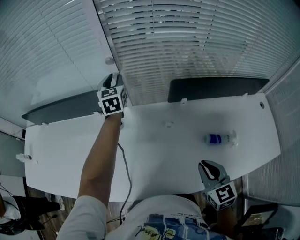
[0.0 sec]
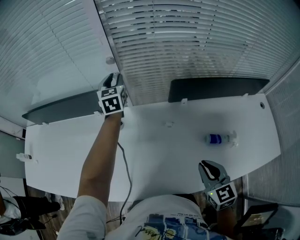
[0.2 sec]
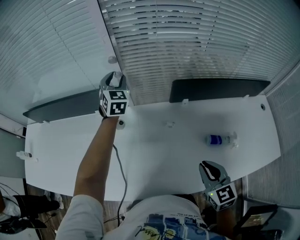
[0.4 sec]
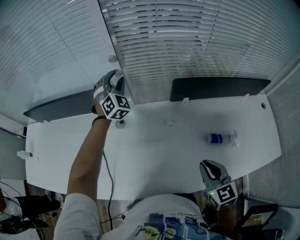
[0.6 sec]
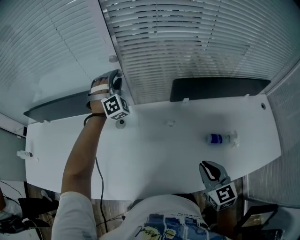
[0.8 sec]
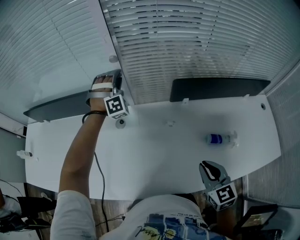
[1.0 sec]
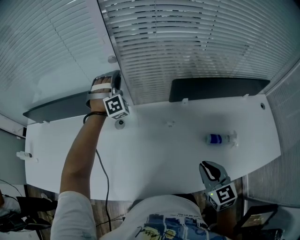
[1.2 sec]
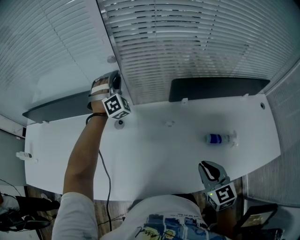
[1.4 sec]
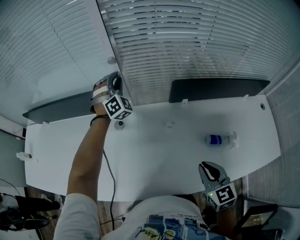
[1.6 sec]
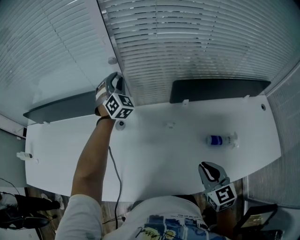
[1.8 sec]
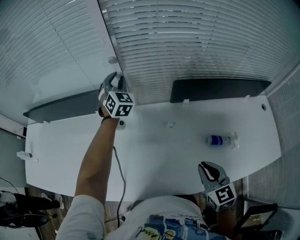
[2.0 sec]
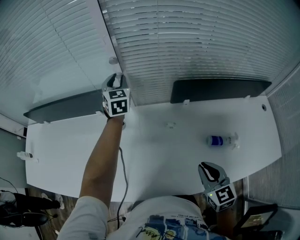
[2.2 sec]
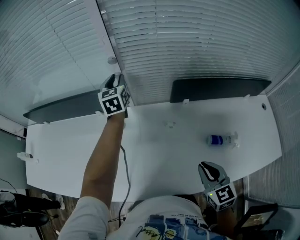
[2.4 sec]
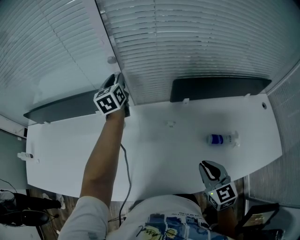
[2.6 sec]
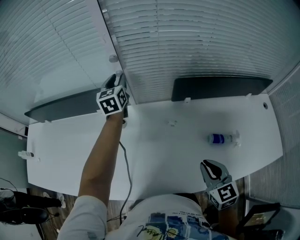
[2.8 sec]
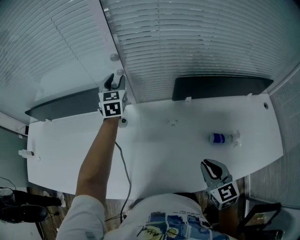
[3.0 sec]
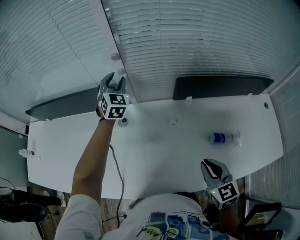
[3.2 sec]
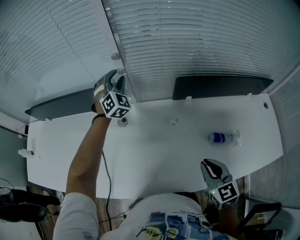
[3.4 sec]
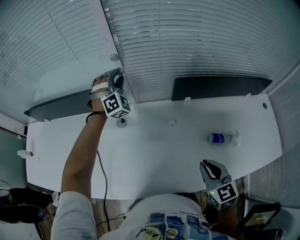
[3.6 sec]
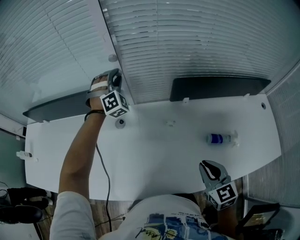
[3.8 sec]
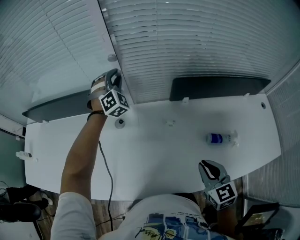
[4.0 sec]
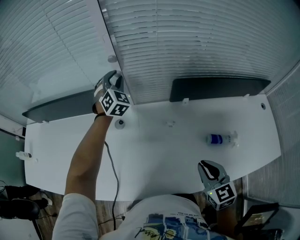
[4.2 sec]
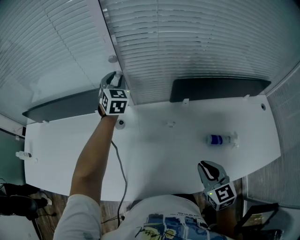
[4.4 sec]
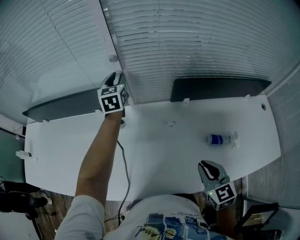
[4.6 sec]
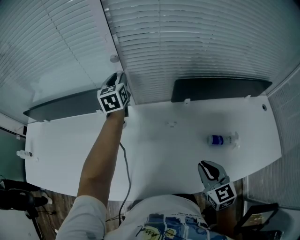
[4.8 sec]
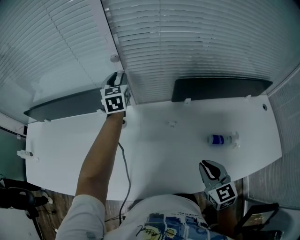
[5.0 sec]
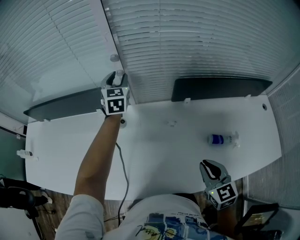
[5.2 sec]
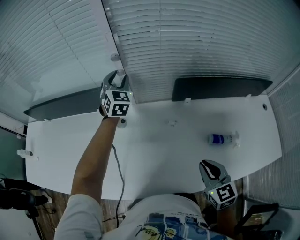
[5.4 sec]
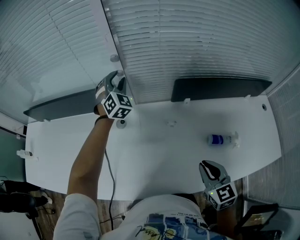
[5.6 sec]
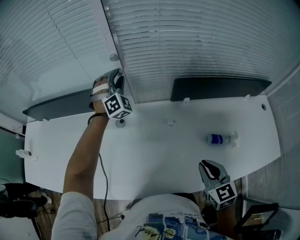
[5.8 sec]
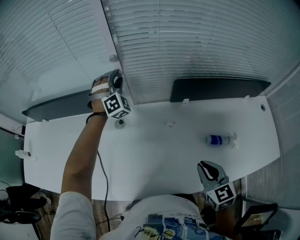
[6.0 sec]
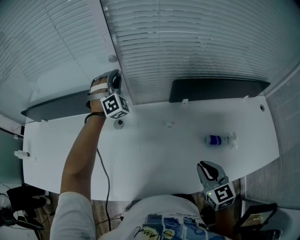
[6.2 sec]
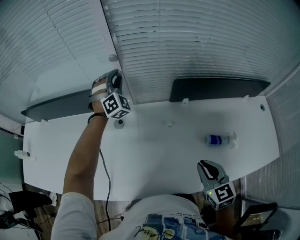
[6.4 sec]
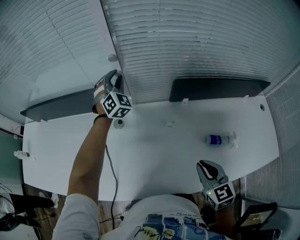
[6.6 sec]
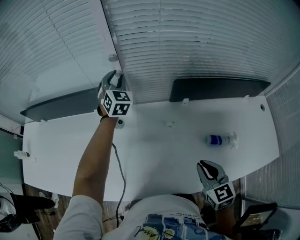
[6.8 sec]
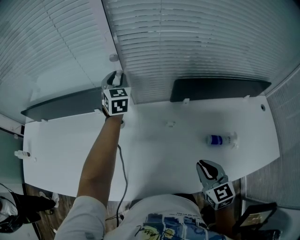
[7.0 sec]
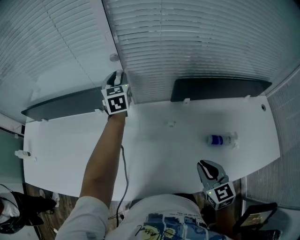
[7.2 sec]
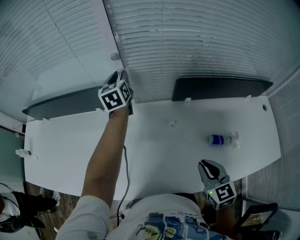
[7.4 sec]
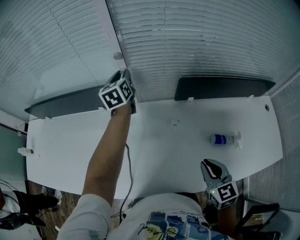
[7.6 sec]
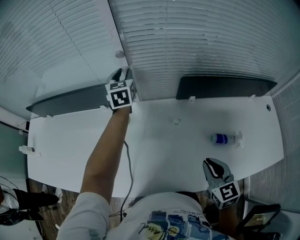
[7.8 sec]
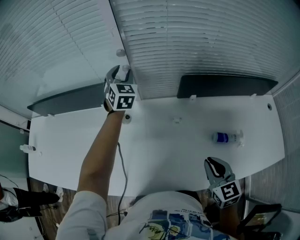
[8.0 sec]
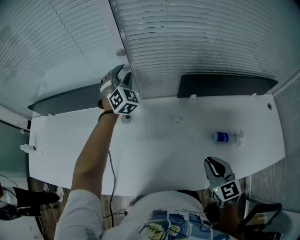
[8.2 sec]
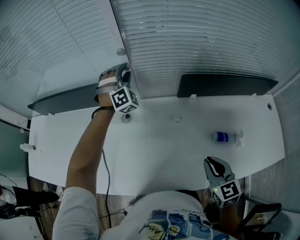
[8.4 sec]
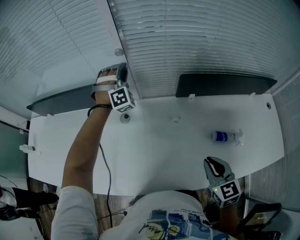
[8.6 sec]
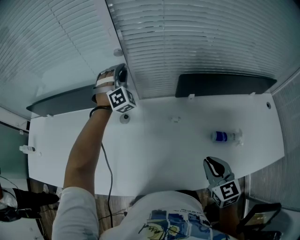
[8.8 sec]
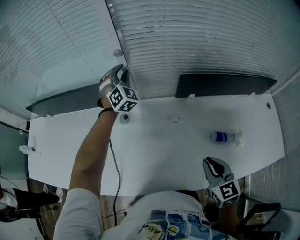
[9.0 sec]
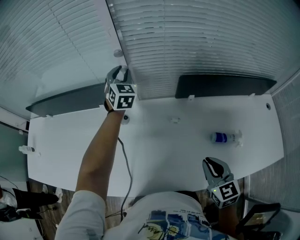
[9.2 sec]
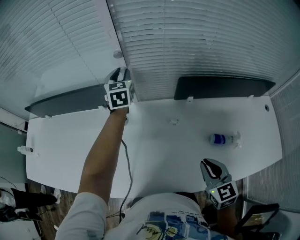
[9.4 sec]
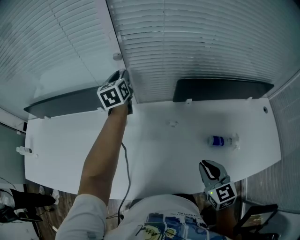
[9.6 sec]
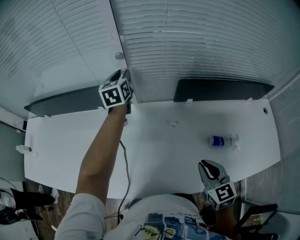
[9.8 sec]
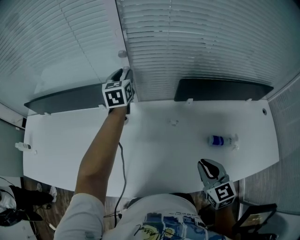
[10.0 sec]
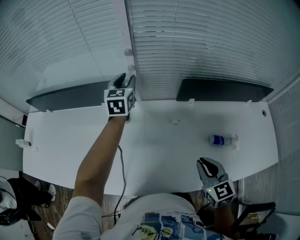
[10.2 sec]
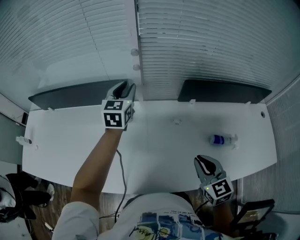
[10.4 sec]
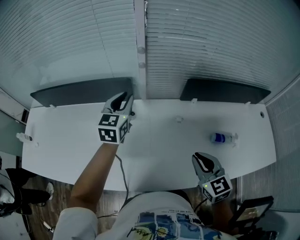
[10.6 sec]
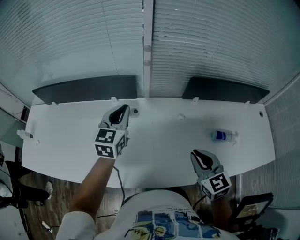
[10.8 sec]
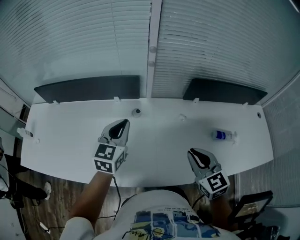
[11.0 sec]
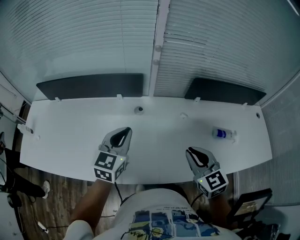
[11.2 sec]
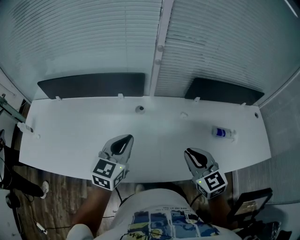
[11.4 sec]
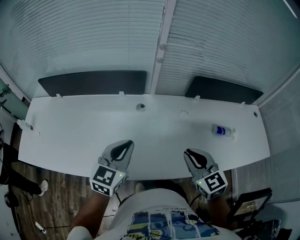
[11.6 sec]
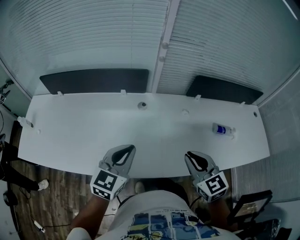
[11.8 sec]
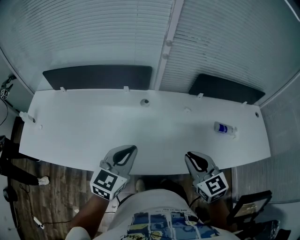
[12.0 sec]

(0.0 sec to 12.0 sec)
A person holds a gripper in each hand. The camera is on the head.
0.0 sec - 1.6 sec: The left gripper rotates around the line of its fingers by approximately 60 degrees, clockwise from behind.
1.6 sec - 3.0 sec: The left gripper rotates around the line of its fingers by roughly 60 degrees, counterclockwise from behind.
4.4 sec - 6.0 sec: The left gripper twists about 50 degrees clockwise, seen from behind.
6.0 sec - 7.6 sec: The left gripper twists approximately 90 degrees counterclockwise, seen from behind.
7.6 sec - 9.0 sec: The left gripper twists approximately 70 degrees clockwise, seen from behind.
9.0 sec - 10.4 sec: The left gripper is displaced backward by approximately 10 cm, and twists roughly 50 degrees counterclockwise, seen from behind. Meanwhile the right gripper moves to the left, approximately 5 cm.
10.4 sec - 12.0 sec: The left gripper goes roughly 35 cm backward, and closes. Meanwhile the right gripper shifts about 20 cm to the left and backward.

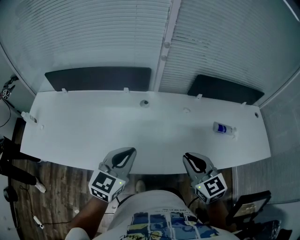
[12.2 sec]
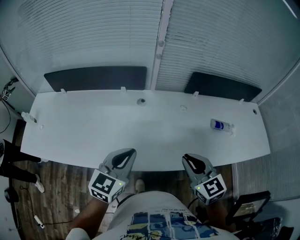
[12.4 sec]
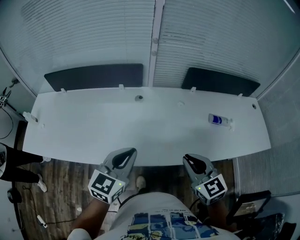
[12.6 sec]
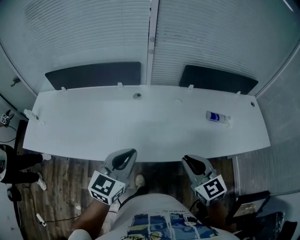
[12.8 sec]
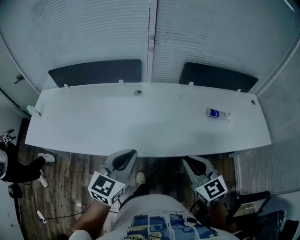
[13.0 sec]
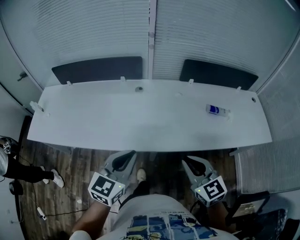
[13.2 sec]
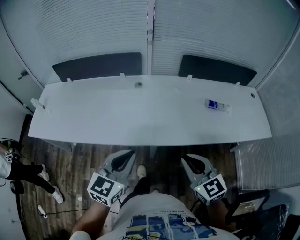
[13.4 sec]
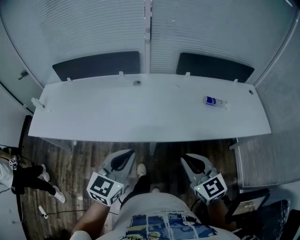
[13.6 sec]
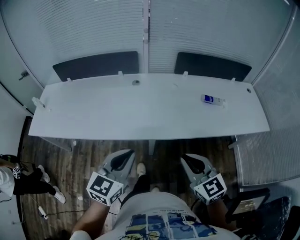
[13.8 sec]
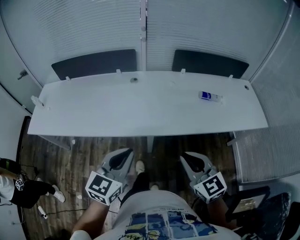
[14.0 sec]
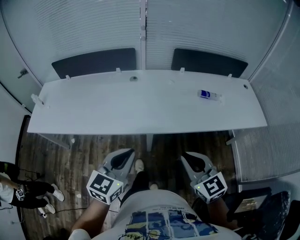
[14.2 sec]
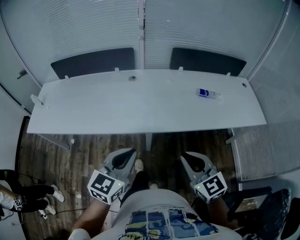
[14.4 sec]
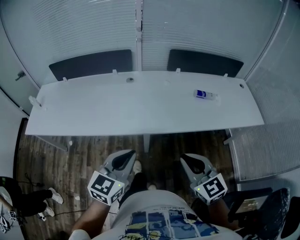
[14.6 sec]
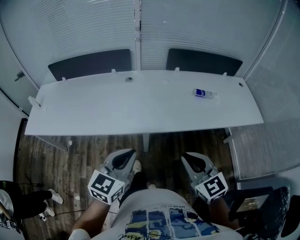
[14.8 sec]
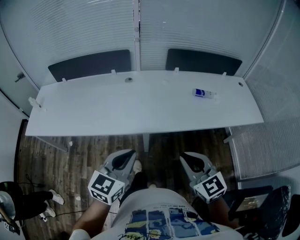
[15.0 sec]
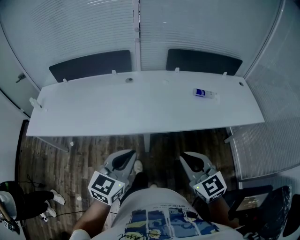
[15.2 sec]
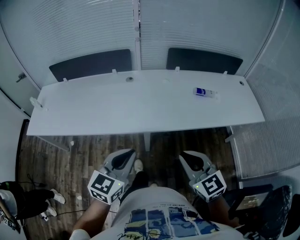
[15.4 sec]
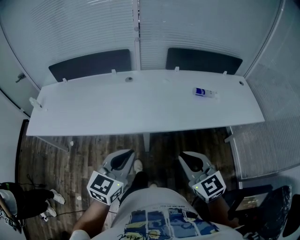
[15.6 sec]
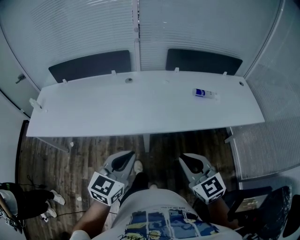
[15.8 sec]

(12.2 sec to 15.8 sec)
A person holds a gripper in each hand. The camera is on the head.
12.2 sec - 14.0 sec: The grippers both shift backward by some 25 cm.
14.0 sec - 15.8 sec: The right gripper ends up approximately 5 cm from where it was, while the left gripper ends up roughly 5 cm from where it was.

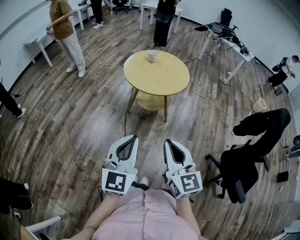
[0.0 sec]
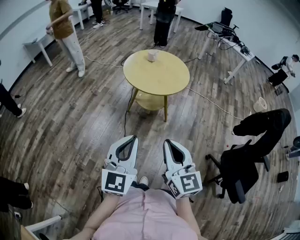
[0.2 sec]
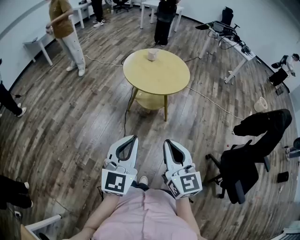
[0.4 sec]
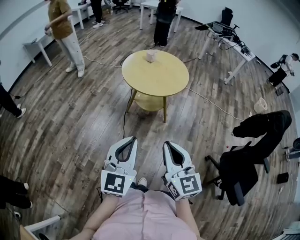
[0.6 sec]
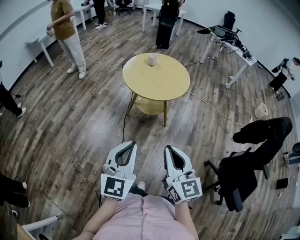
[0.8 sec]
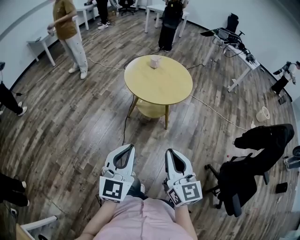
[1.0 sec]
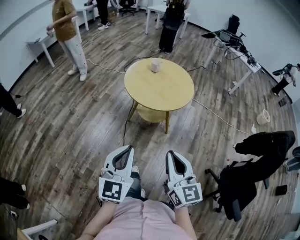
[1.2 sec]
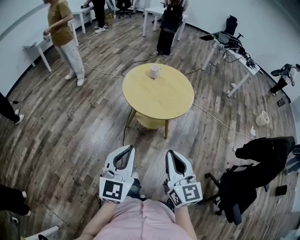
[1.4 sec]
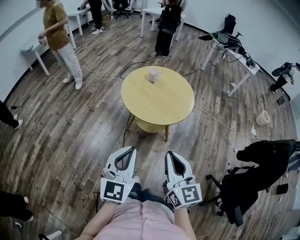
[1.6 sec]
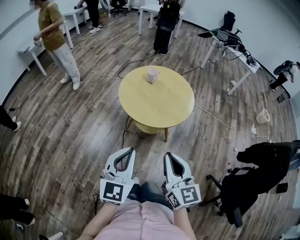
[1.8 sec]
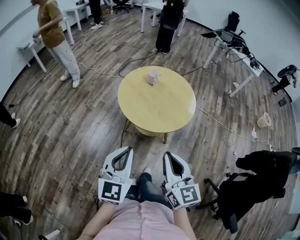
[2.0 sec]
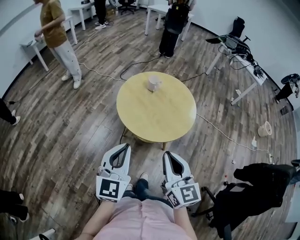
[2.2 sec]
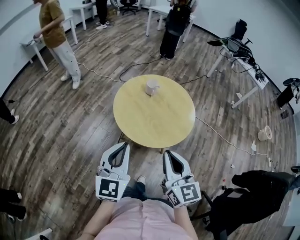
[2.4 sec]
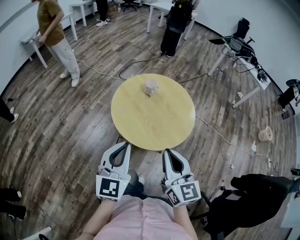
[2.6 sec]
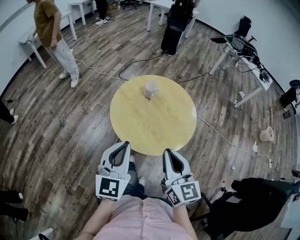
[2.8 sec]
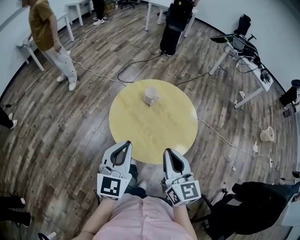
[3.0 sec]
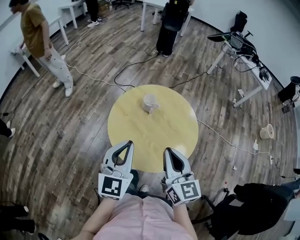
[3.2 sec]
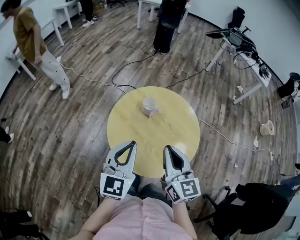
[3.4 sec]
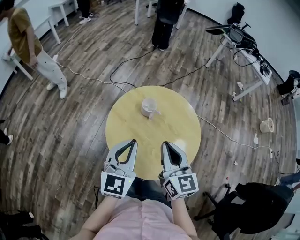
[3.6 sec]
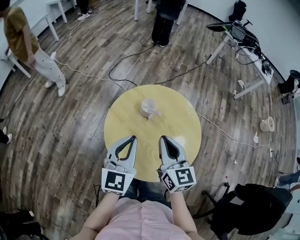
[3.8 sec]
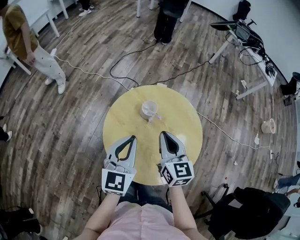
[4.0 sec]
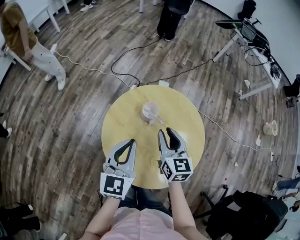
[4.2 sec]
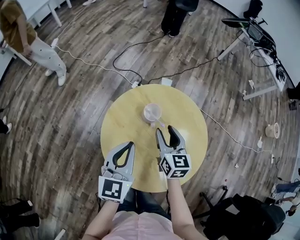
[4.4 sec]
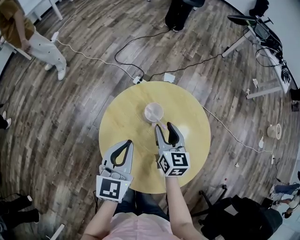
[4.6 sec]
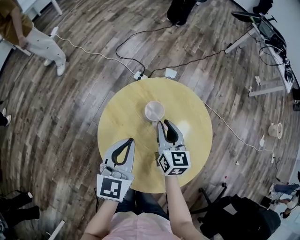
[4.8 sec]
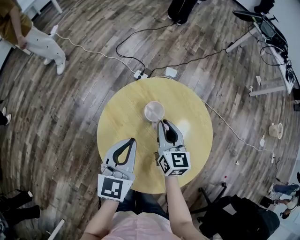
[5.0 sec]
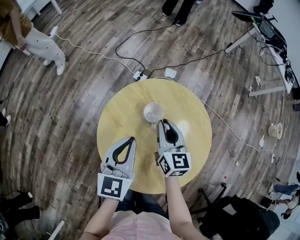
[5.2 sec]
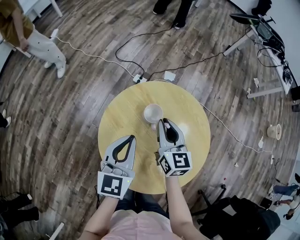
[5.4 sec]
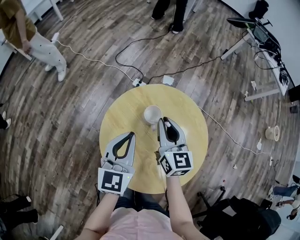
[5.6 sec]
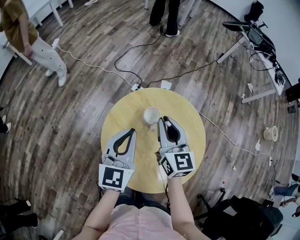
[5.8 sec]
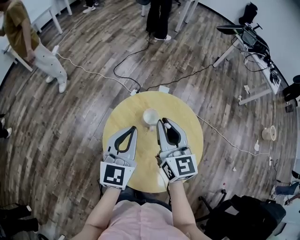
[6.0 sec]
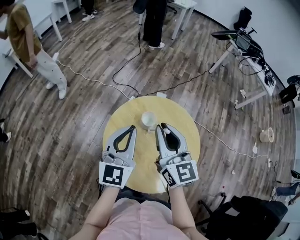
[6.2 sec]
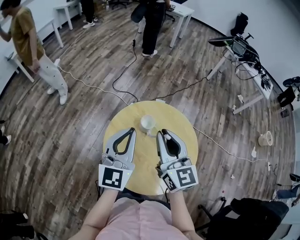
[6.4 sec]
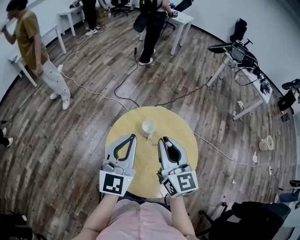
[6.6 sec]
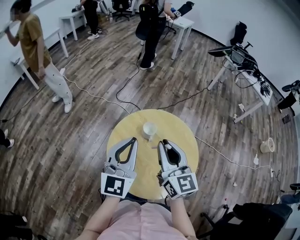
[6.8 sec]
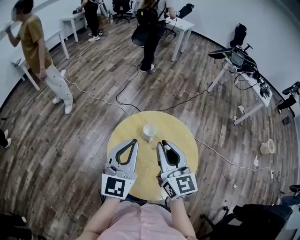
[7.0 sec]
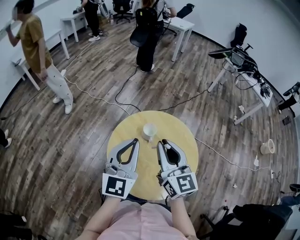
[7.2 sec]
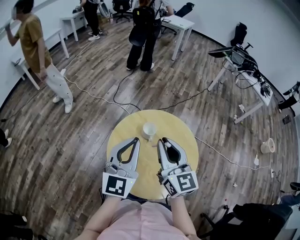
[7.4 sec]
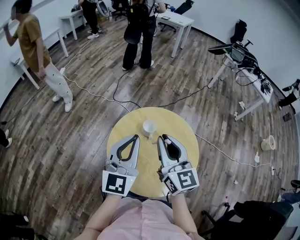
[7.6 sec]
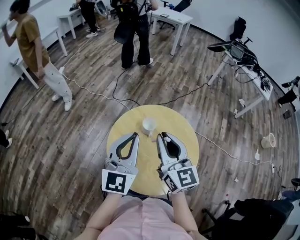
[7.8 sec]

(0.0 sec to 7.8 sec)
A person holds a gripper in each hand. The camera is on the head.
0.0 sec - 1.6 sec: The two grippers go roughly 20 cm forward.
1.6 sec - 3.2 sec: The grippers both shift forward by roughly 35 cm.
3.2 sec - 4.6 sec: The left gripper goes approximately 20 cm forward and downward. Meanwhile the right gripper heads forward and downward, covering about 30 cm, and opens its fingers.
4.6 sec - 6.2 sec: The right gripper travels upward by roughly 20 cm, swivels approximately 20 degrees, and closes up. The left gripper shifts approximately 10 cm upward.
6.2 sec - 7.8 sec: The right gripper is displaced backward by approximately 5 cm. Meanwhile the left gripper is displaced backward and upward by roughly 10 cm.
